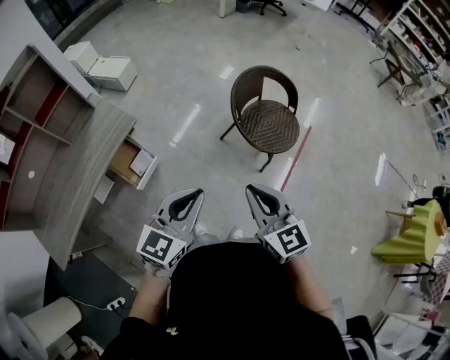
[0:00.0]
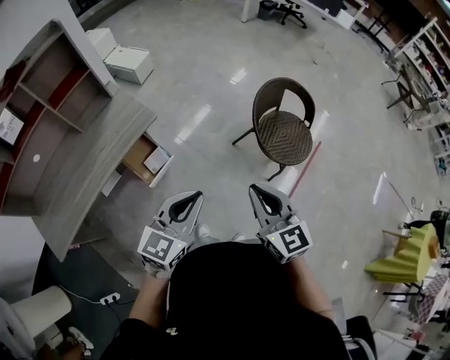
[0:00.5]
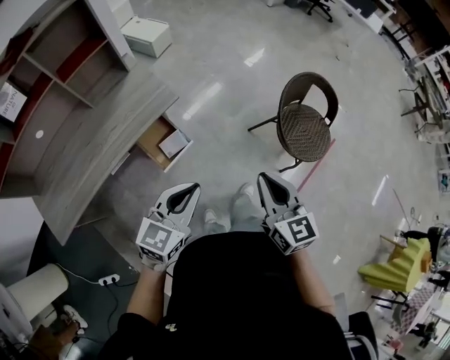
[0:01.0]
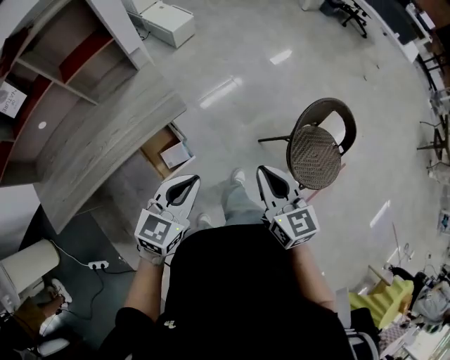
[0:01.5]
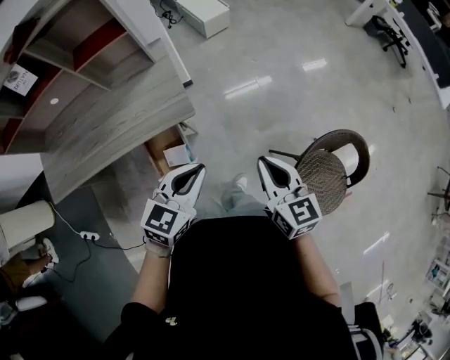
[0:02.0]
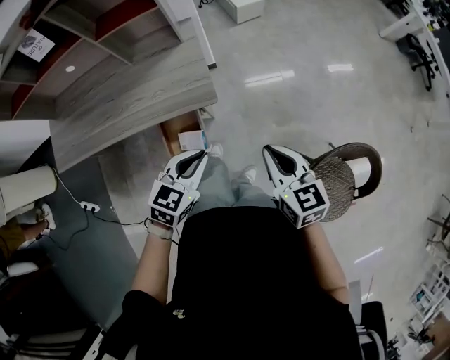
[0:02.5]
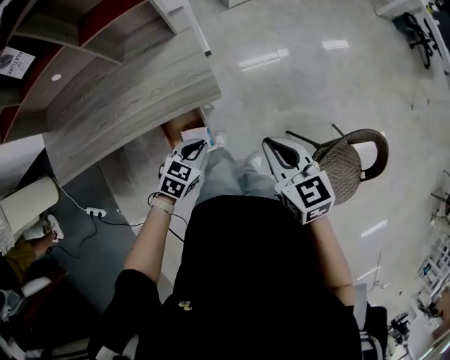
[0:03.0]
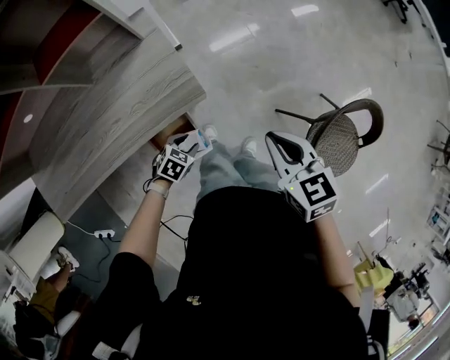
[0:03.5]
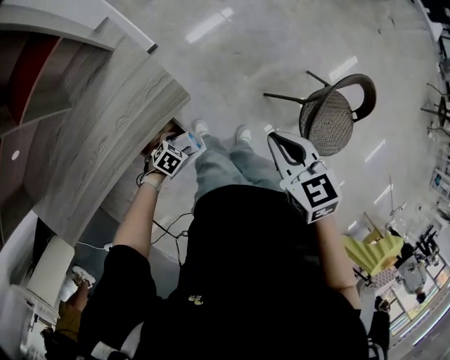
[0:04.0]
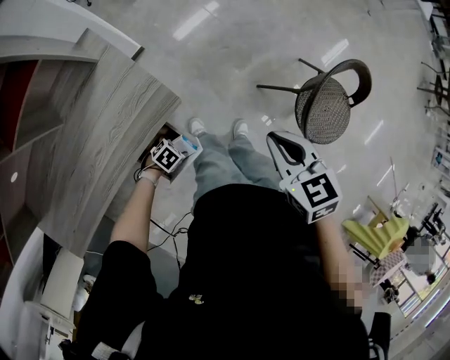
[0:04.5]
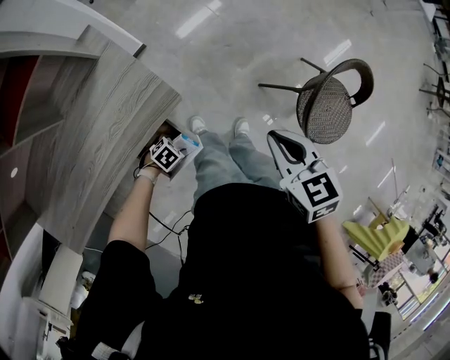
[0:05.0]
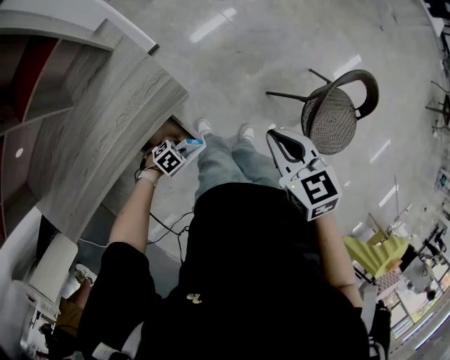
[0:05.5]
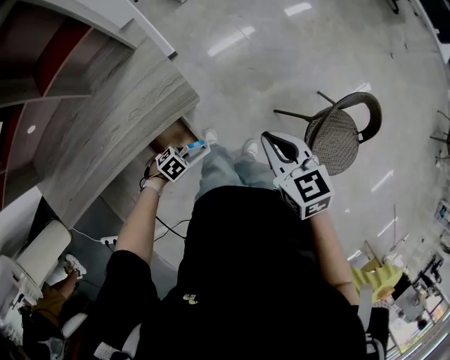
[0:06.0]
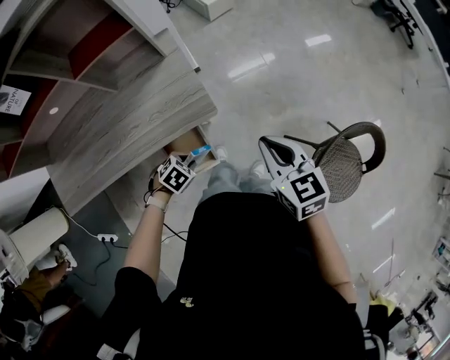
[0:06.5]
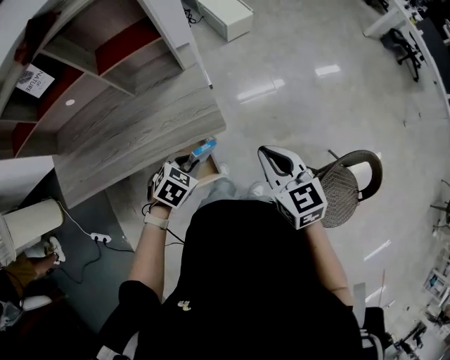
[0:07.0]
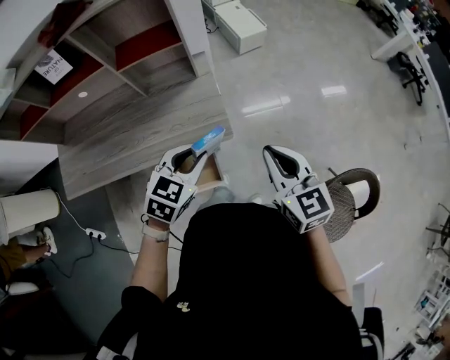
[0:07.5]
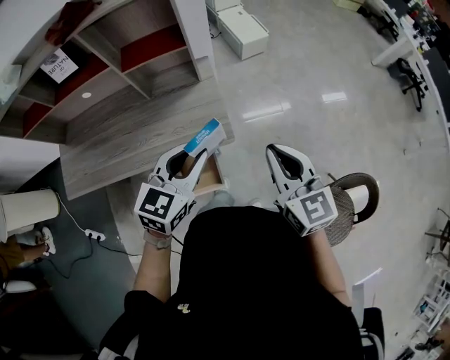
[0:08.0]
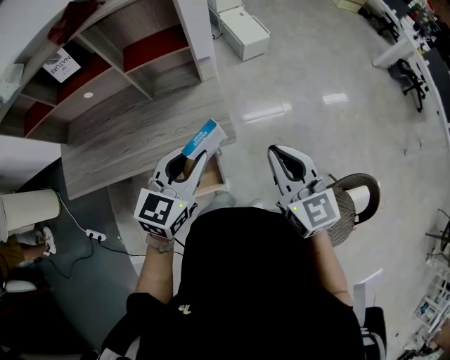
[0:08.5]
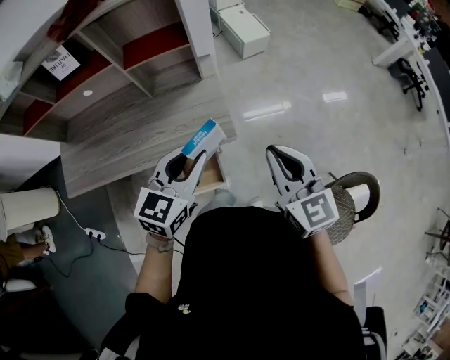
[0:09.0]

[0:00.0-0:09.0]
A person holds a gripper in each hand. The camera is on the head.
0:00.0 to 0:02.0: The right gripper shifts by approximately 40 cm, and rotates roughly 30 degrees, while the left gripper moves some 35 cm, and changes its angle by approximately 40 degrees.
0:02.0 to 0:04.5: The right gripper moves downward, some 10 cm, and swivels about 30 degrees; the left gripper goes approximately 50 cm downward, tilts its fingers roughly 40 degrees downward, and opens its fingers.
0:04.5 to 0:07.0: The right gripper heads upward, covering about 10 cm, and rotates approximately 30 degrees. The left gripper shifts approximately 30 cm upward, changes its angle by approximately 40 degrees, and closes up.
0:07.0 to 0:09.0: The left gripper moves upward, some 20 cm, and tips its fingers upward by approximately 40 degrees. Meanwhile the right gripper shifts roughly 10 cm upward.

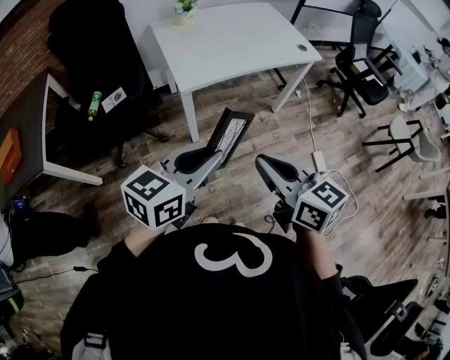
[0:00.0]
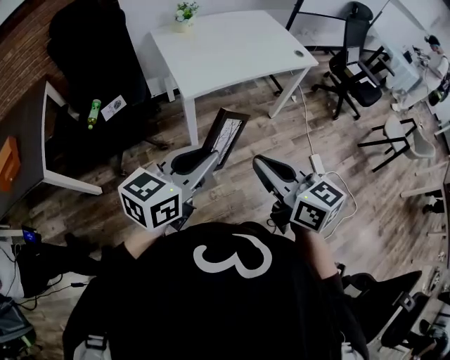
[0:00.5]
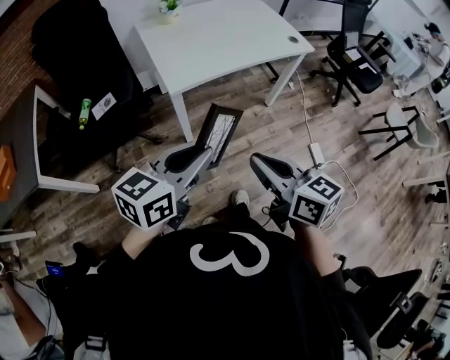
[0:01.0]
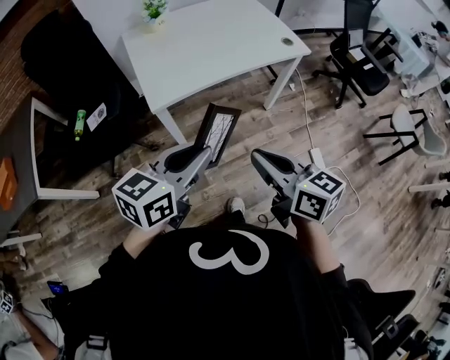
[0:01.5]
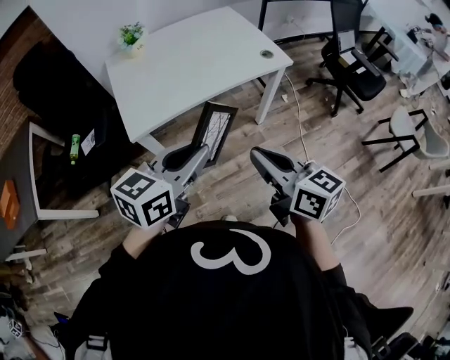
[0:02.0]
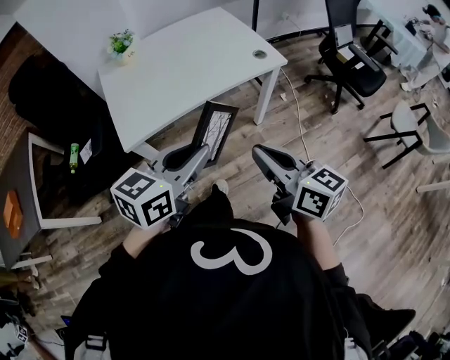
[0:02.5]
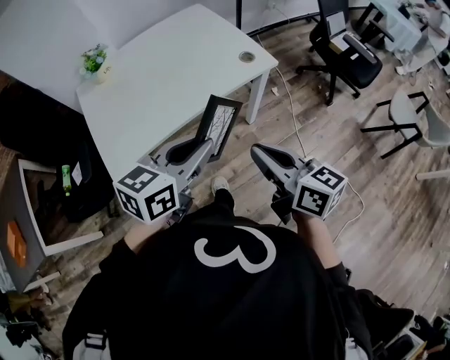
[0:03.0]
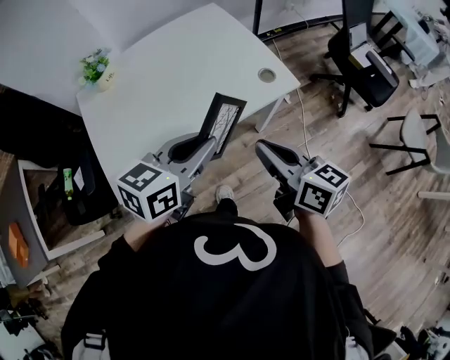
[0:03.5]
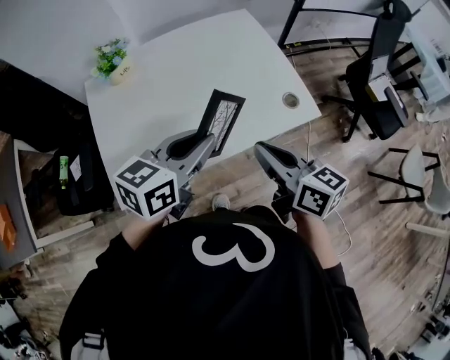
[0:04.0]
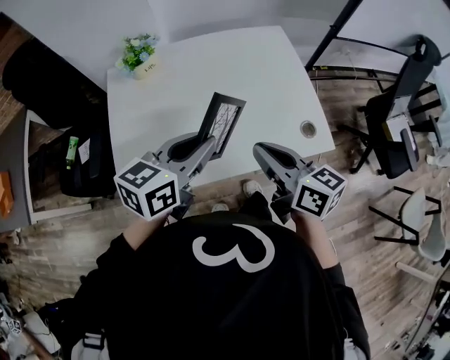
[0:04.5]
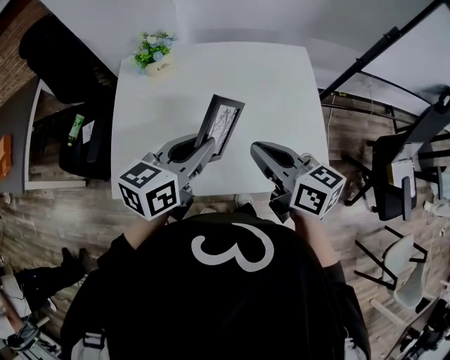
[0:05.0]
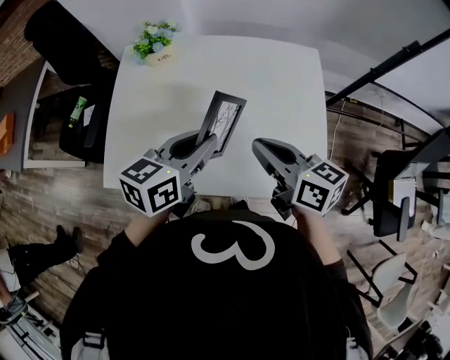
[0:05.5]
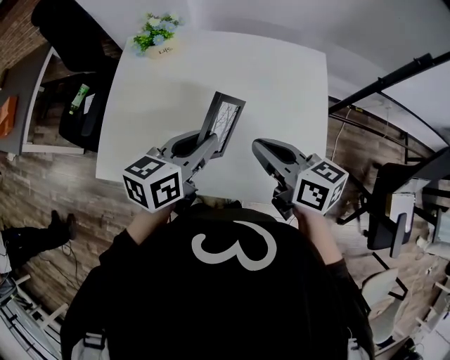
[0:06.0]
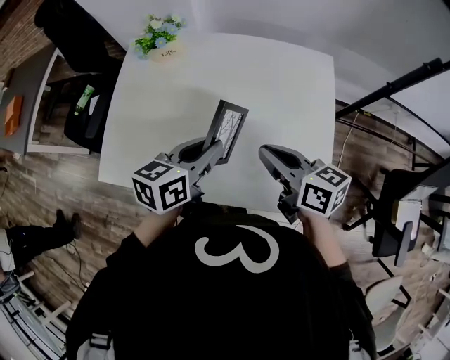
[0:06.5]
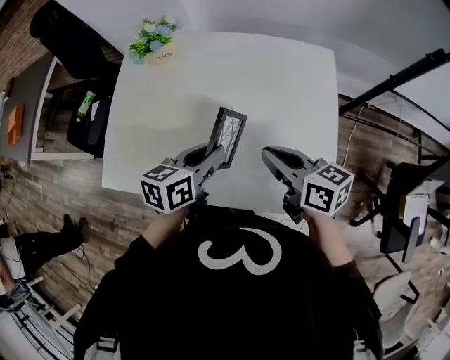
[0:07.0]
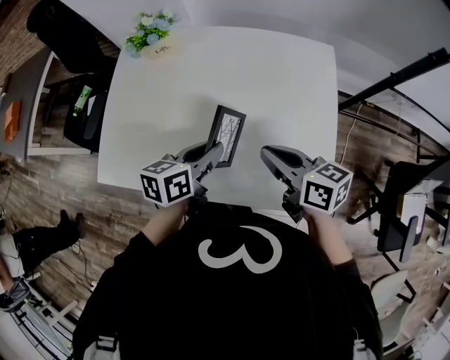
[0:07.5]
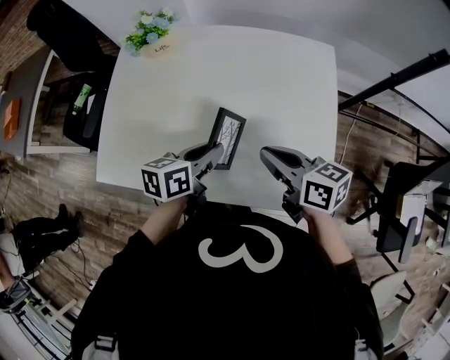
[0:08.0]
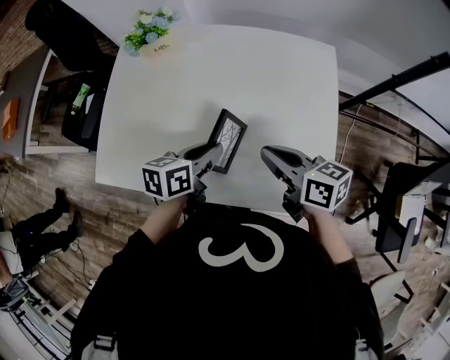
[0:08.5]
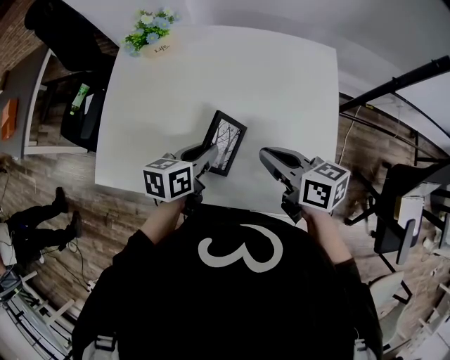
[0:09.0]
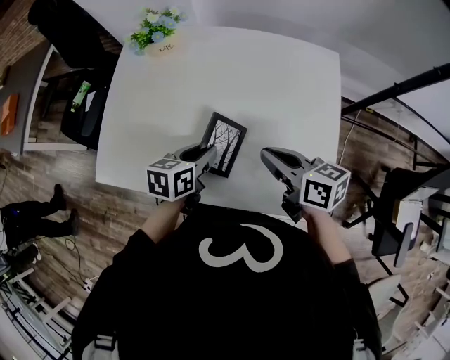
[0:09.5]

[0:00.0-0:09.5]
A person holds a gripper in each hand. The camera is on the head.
0:00.0 to 0:02.0: The right gripper heads to the right and forward, covering roughly 25 cm. The left gripper moves forward and to the right, approximately 25 cm.
0:02.0 to 0:04.0: Both grippers travel together forward, some 35 cm.
0:04.0 to 0:05.5: The left gripper shifts by approximately 15 cm, and turns by roughly 30 degrees, while the right gripper moves about 20 cm, and changes its angle by about 30 degrees.
0:05.5 to 0:07.5: Both grippers travel together downward, about 10 cm.
0:07.5 to 0:09.5: The left gripper heads downward, covering about 5 cm.

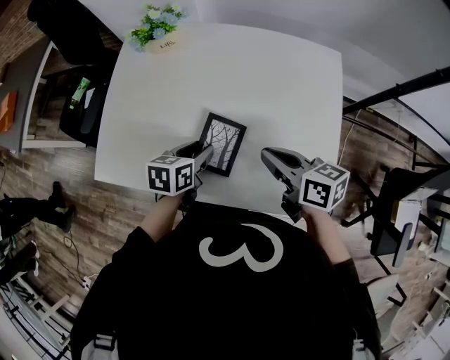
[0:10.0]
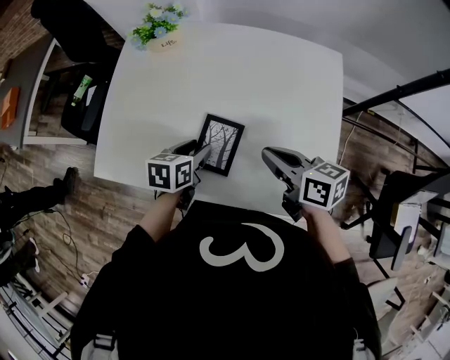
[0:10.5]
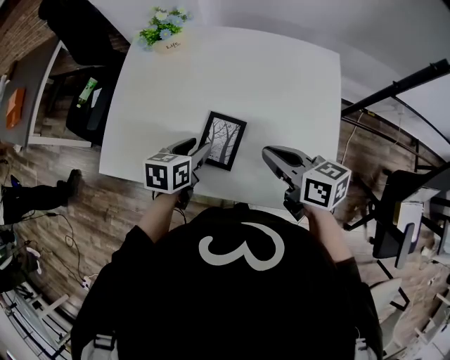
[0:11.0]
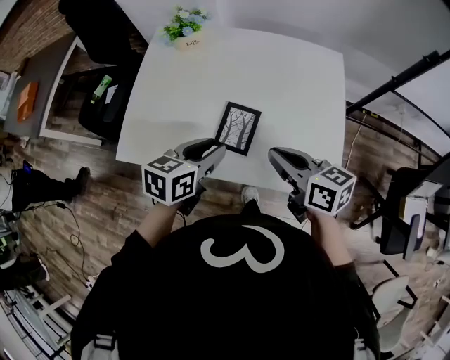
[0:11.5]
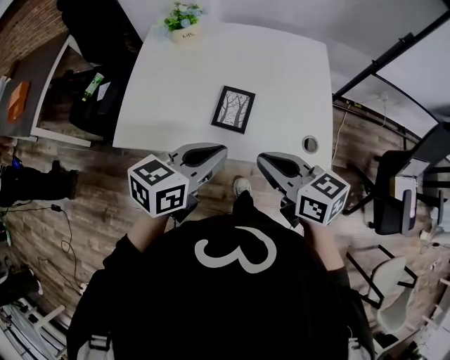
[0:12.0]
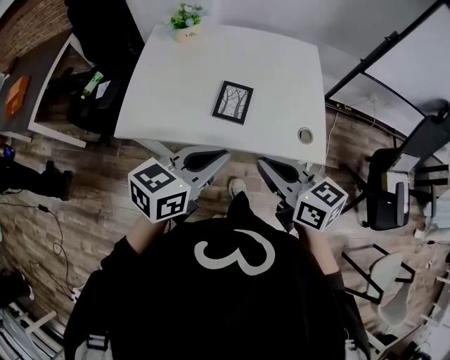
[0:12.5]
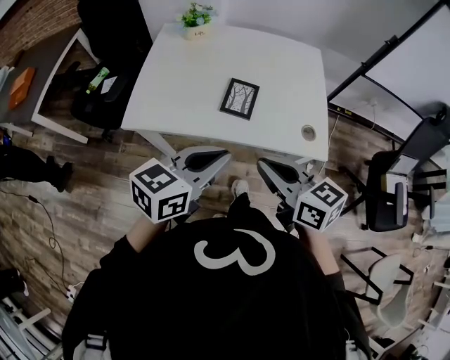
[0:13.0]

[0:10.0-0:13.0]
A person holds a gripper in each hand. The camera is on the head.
0:10.0 to 0:11.5: The left gripper heads upward and backward, covering roughly 15 cm; the right gripper is displaced backward and upward by roughly 10 cm.
0:11.5 to 0:13.0: The right gripper shifts roughly 20 cm backward. The left gripper moves backward and upward, some 20 cm, changes its angle by about 20 degrees, and closes.

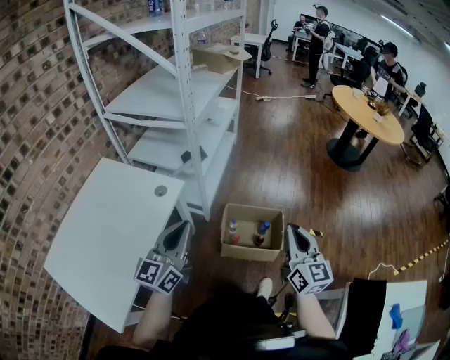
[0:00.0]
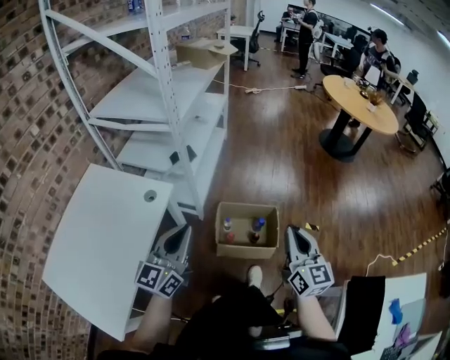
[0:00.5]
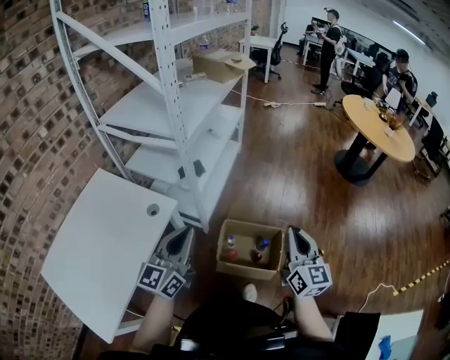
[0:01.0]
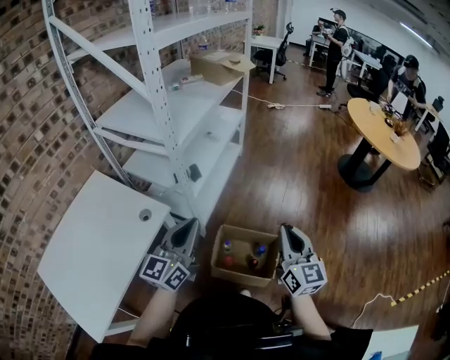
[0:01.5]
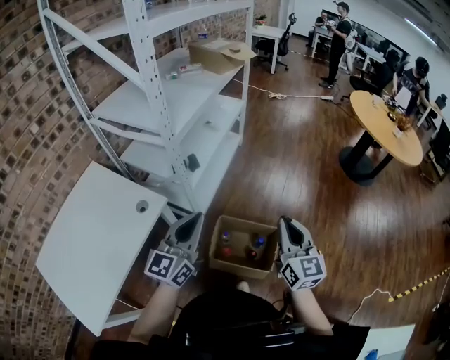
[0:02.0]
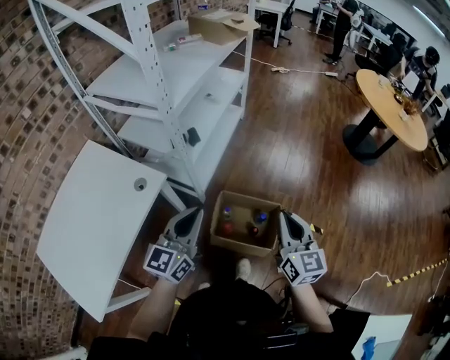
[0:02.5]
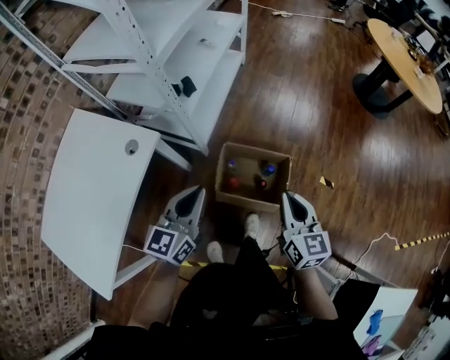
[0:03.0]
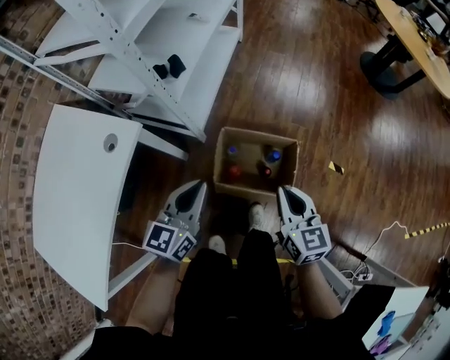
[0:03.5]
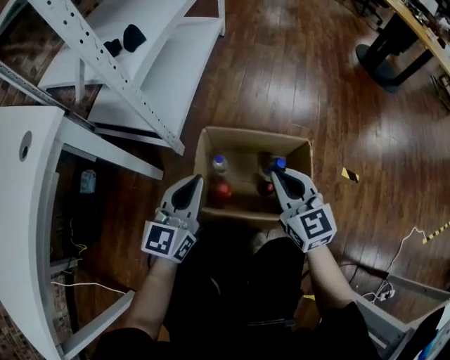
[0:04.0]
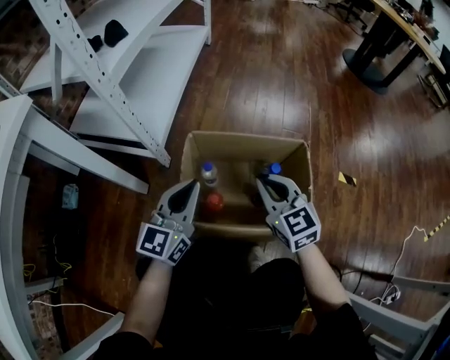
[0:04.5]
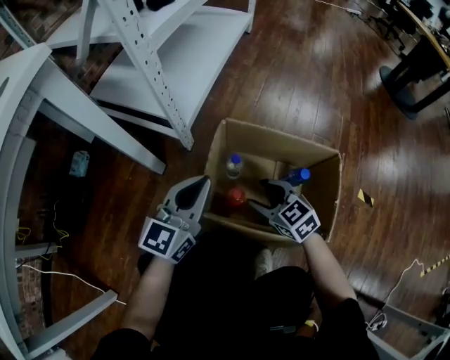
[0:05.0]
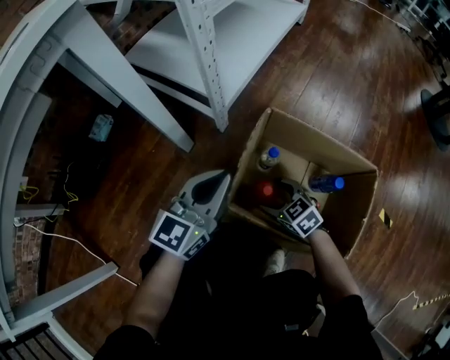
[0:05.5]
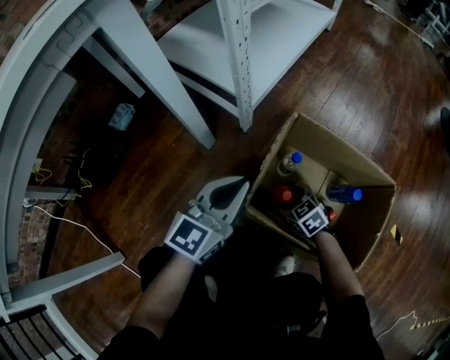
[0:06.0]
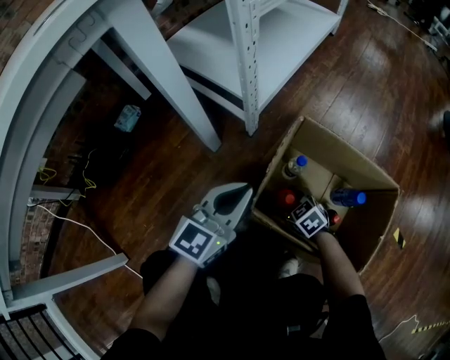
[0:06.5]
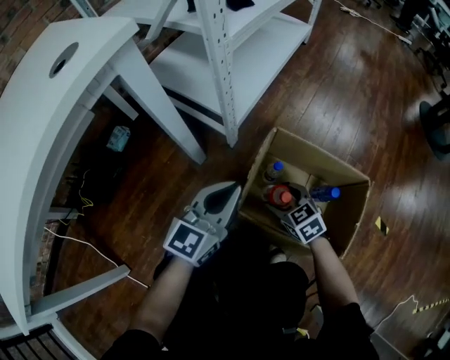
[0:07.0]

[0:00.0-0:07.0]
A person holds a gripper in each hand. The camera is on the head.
0:00.0 to 0:02.0: The left gripper is displaced forward and to the right by roughly 20 cm, while the right gripper goes approximately 20 cm forward.
0:02.0 to 0:03.5: The two grippers go about 25 cm downward. The left gripper turns by roughly 20 degrees; the right gripper rotates approximately 20 degrees.
0:03.5 to 0:05.0: The grippers both shift downward by about 40 cm. The right gripper swivels about 40 degrees, and opens its fingers.
0:05.0 to 0:07.0: Both grippers travel together to the left, about 5 cm. The right gripper goes downward and returns, roughly 15 cm each way.
